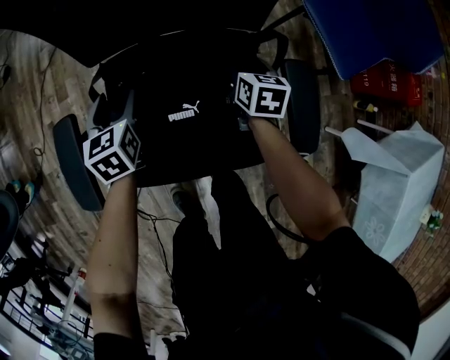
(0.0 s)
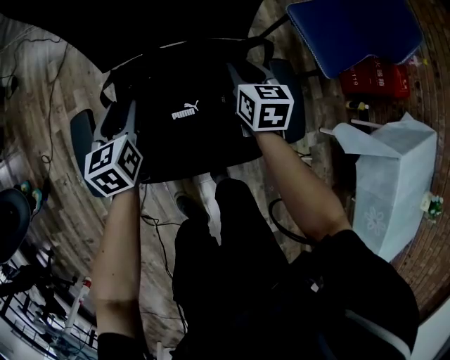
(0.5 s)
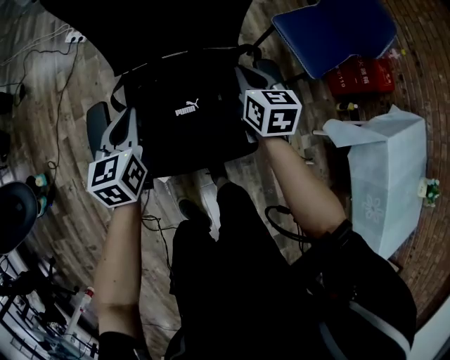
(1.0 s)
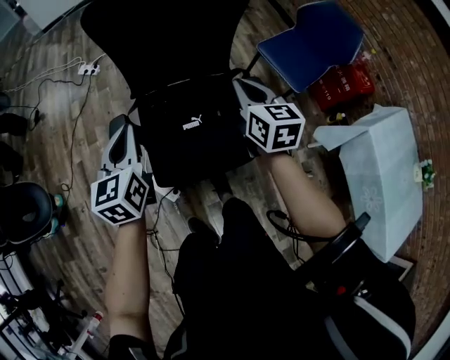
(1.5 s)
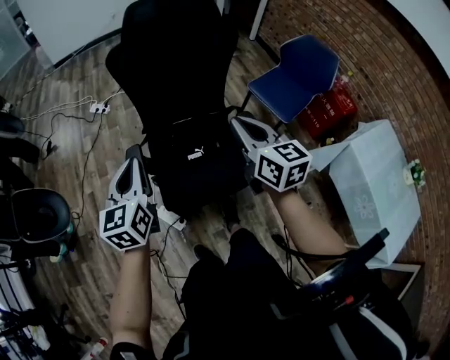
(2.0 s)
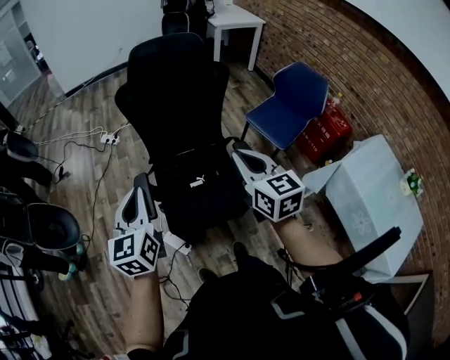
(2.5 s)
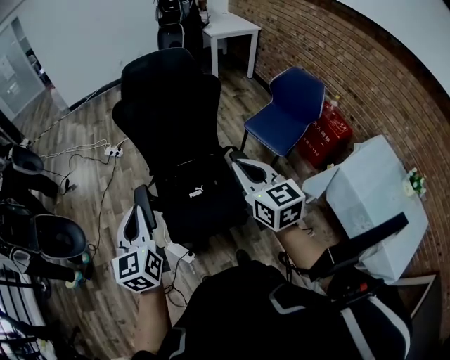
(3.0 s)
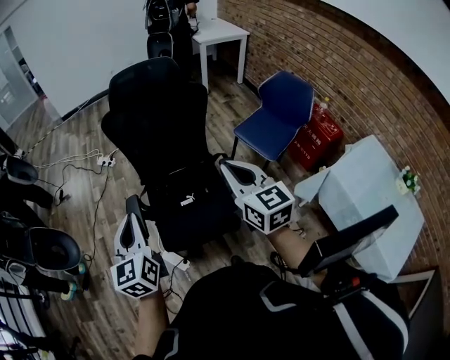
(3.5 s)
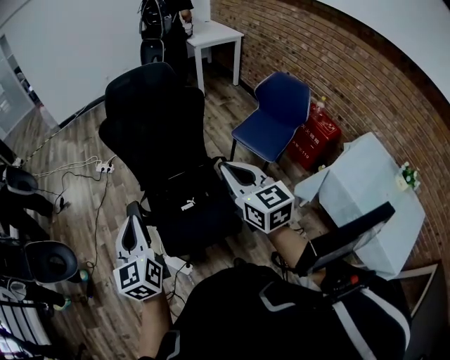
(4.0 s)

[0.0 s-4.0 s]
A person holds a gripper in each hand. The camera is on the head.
0.0 to 2.0 s: Both grippers move upward and backward, approximately 50 cm. The right gripper tilts its fingers roughly 30 degrees upward, and closes; the left gripper rotates some 30 degrees, and closes.
2.0 to 4.0 s: The left gripper goes some 10 cm upward, backward and to the right. Meanwhile the right gripper travels upward and to the right by some 10 cm.

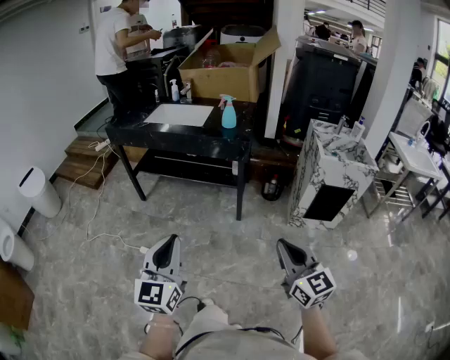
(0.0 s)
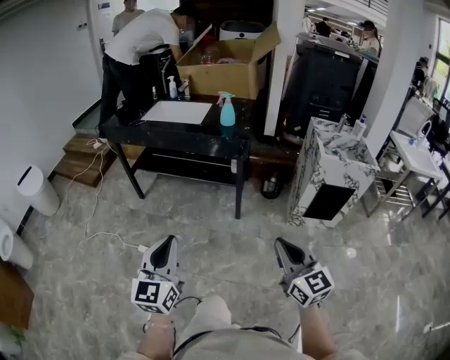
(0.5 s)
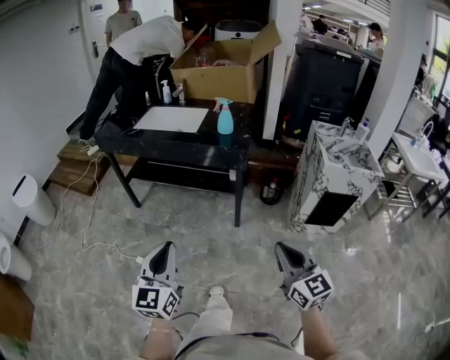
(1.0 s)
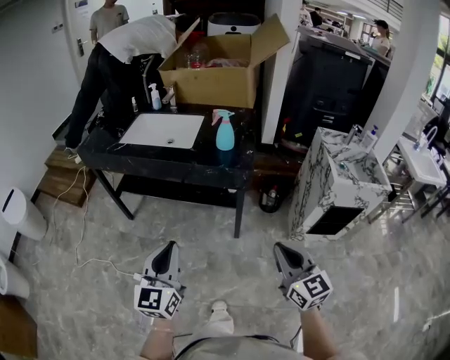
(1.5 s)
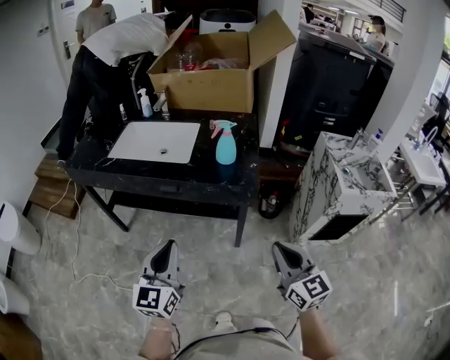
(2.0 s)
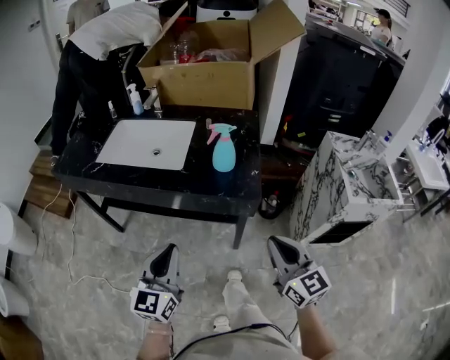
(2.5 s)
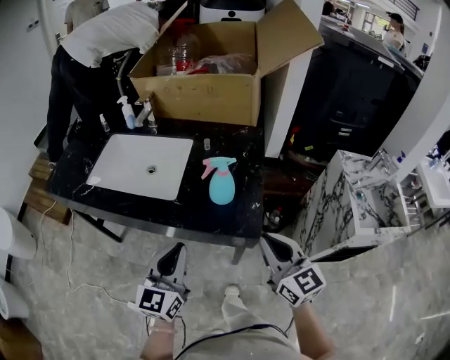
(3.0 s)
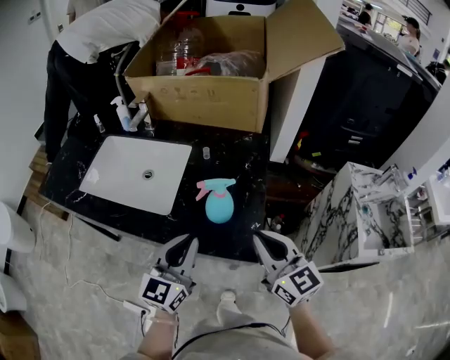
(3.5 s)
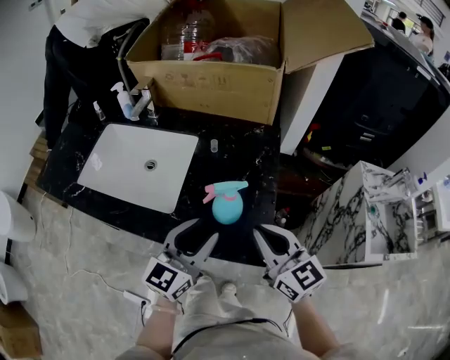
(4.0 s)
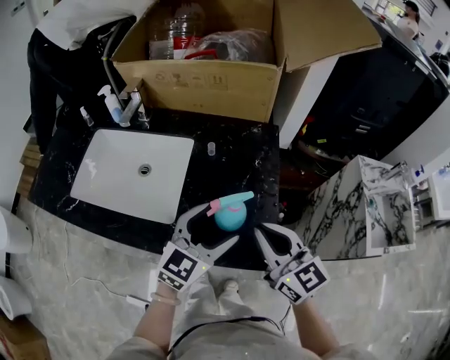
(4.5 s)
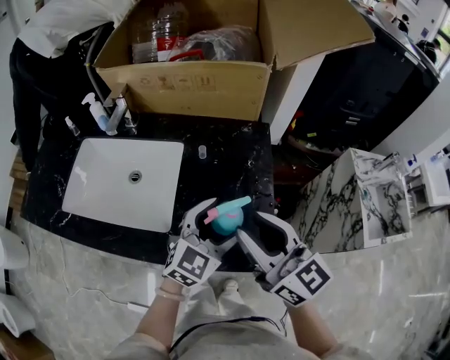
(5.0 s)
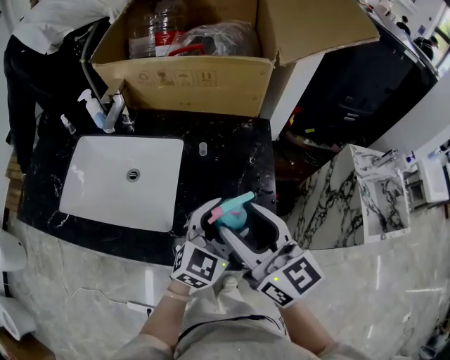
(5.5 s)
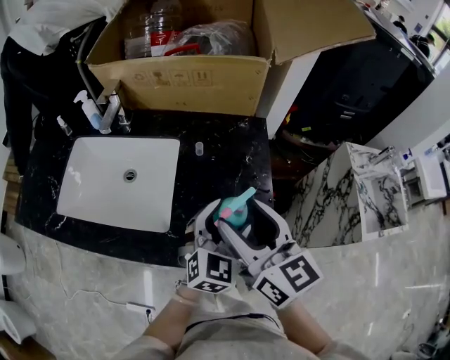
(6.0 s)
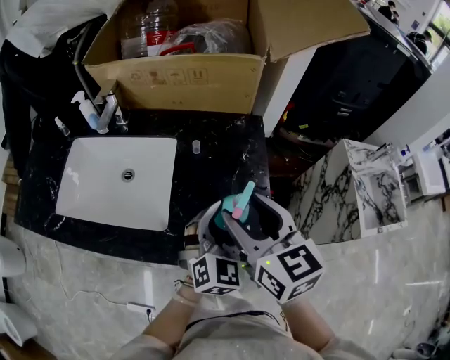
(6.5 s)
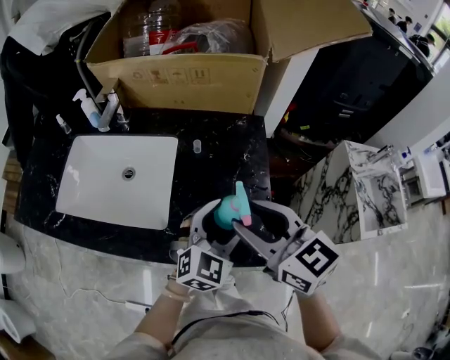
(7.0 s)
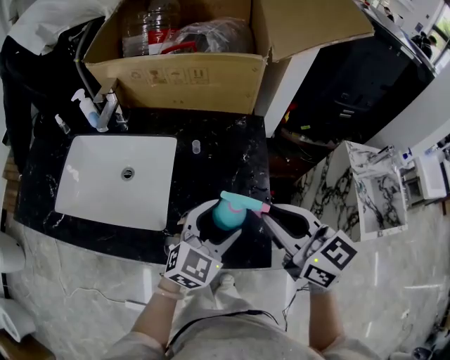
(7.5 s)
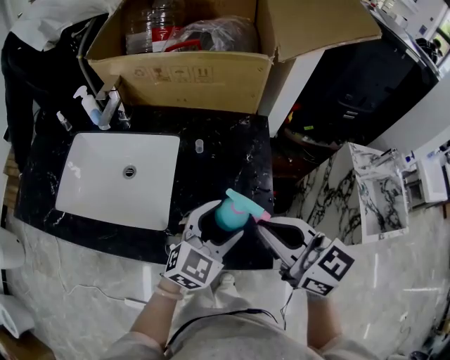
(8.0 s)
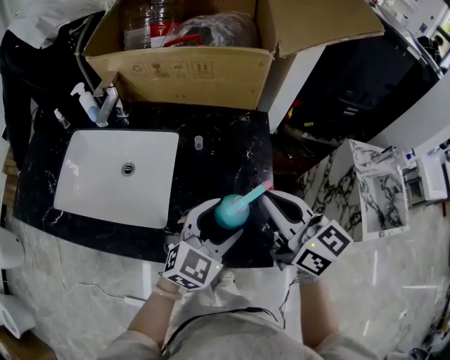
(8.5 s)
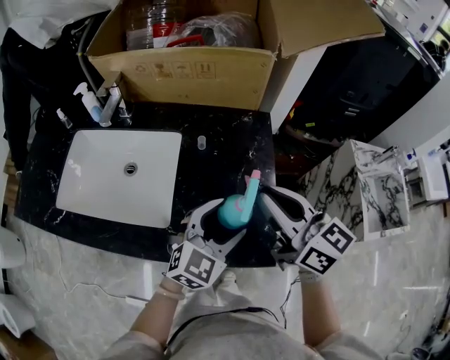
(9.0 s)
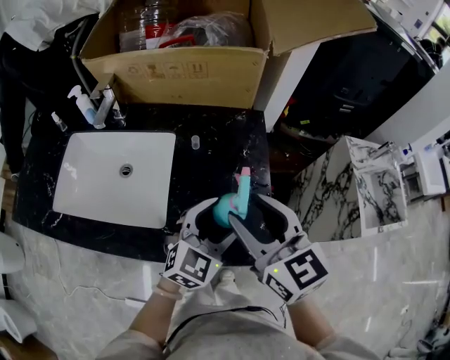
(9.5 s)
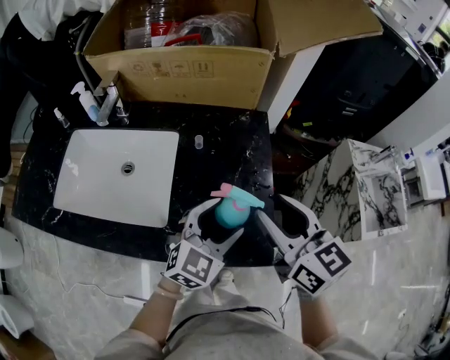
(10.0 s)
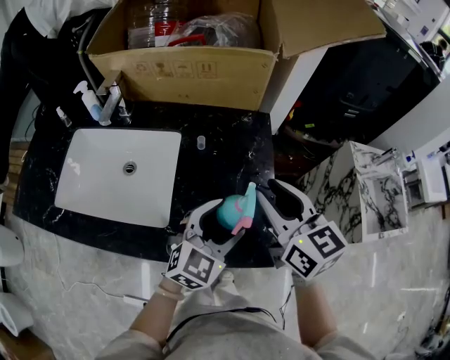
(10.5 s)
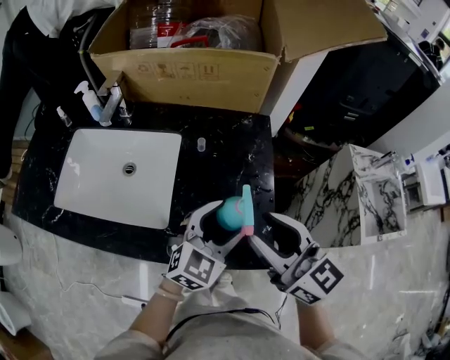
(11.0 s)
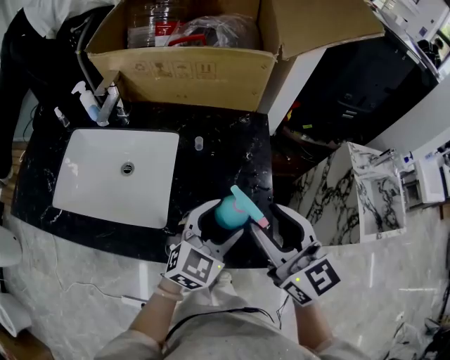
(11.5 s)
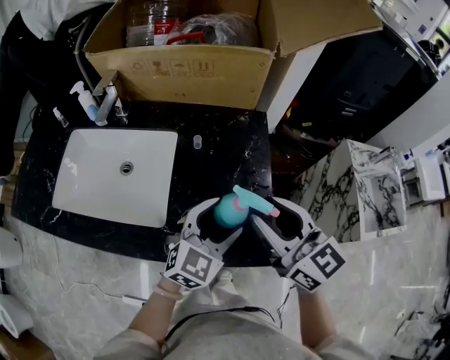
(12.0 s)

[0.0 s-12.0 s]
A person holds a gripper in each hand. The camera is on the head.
0.0 to 2.0 s: Both grippers travel together forward, about 35 cm.
2.0 to 4.0 s: The right gripper moves forward, approximately 35 cm; the left gripper is displaced forward and to the right by some 35 cm, and opens up.
4.0 to 6.0 s: The left gripper moves forward and to the right, approximately 10 cm, rotates roughly 30 degrees, and opens its fingers. The right gripper moves to the left, upward and forward, some 10 cm, and opens its fingers.
6.0 to 8.0 s: The right gripper ends up some 5 cm from where it was, and closes.
8.0 to 10.0 s: The right gripper opens up.
10.0 to 12.0 s: There are only small adjustments of the grippers.

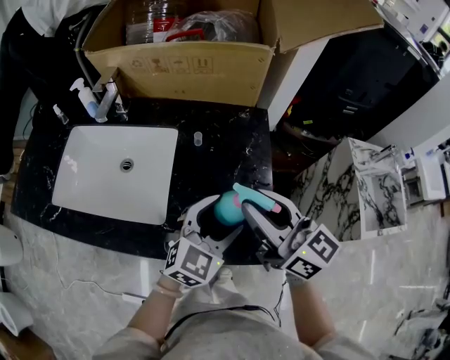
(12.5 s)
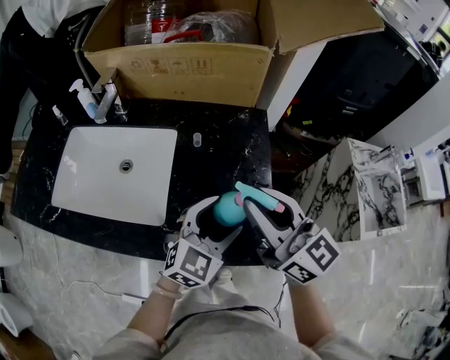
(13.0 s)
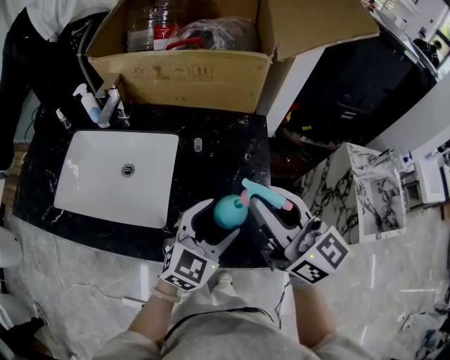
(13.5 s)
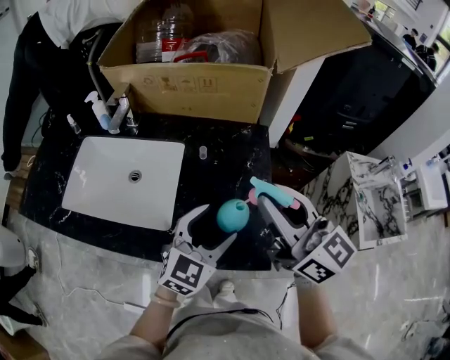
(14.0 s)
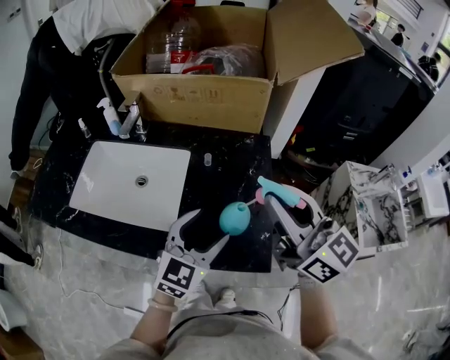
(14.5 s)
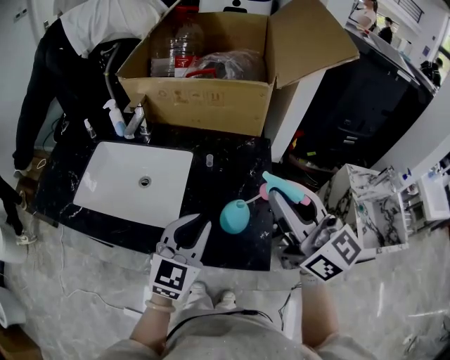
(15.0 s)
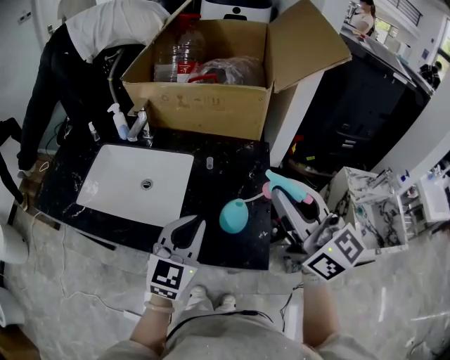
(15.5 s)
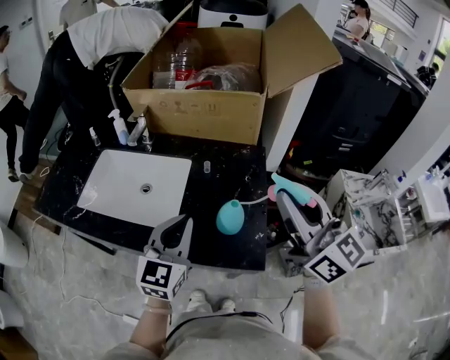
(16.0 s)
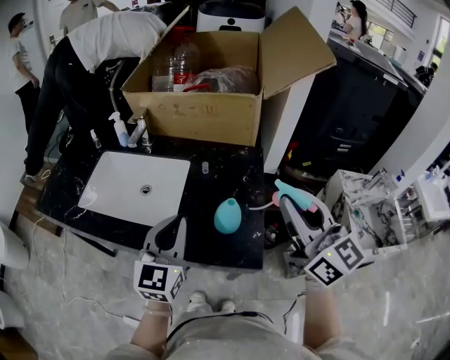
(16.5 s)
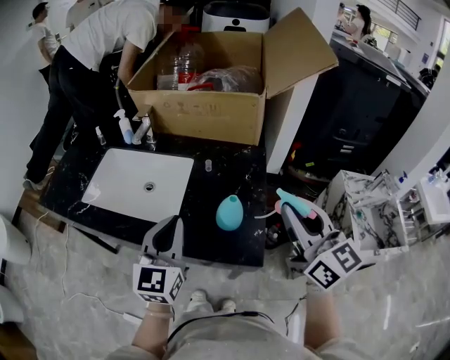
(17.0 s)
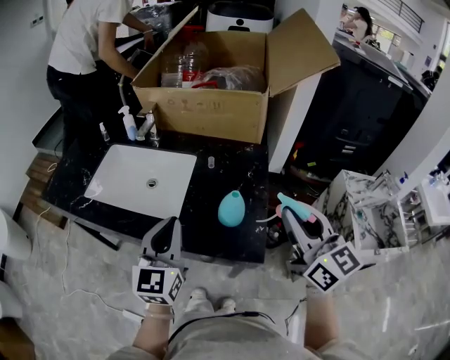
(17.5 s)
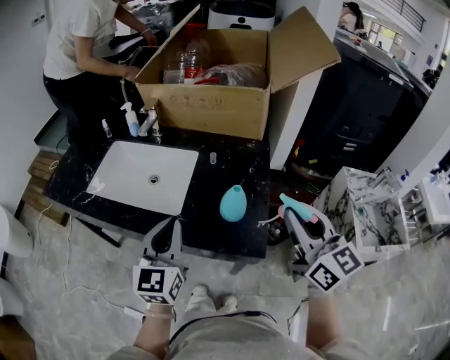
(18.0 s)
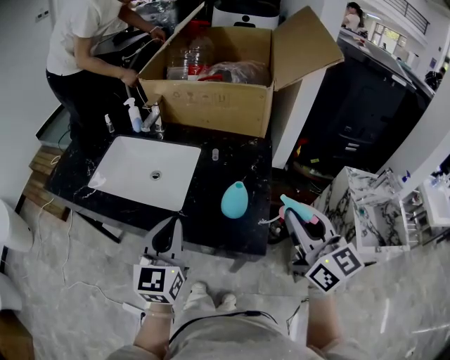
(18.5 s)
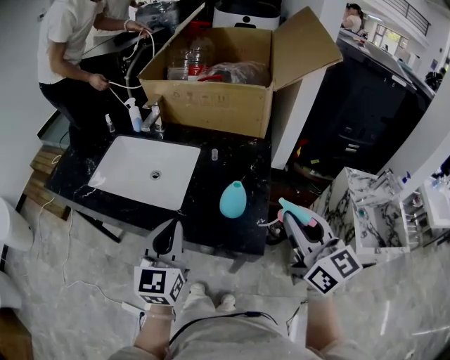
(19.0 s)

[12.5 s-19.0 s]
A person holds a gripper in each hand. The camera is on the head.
12.5 to 14.5 s: The right gripper travels upward by roughly 10 cm, while the left gripper is displaced to the left by roughly 5 cm.
14.5 to 17.0 s: The right gripper is displaced backward and to the right by some 10 cm; the left gripper travels to the left and upward by roughly 10 cm, swivels roughly 30 degrees, and closes.
17.0 to 19.0 s: The left gripper shifts by roughly 5 cm. The right gripper moves about 5 cm.

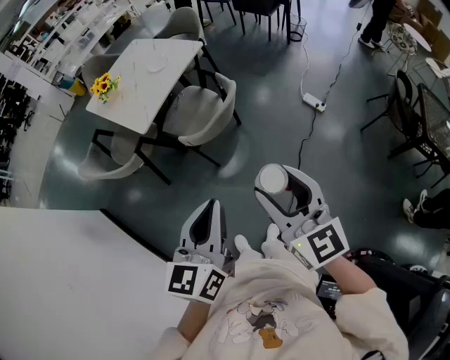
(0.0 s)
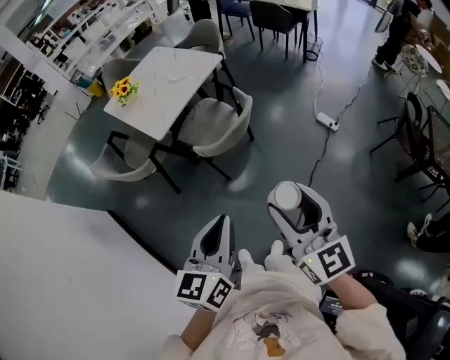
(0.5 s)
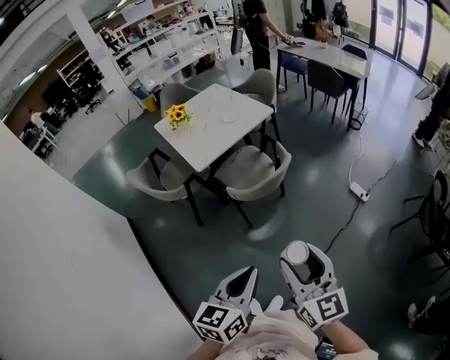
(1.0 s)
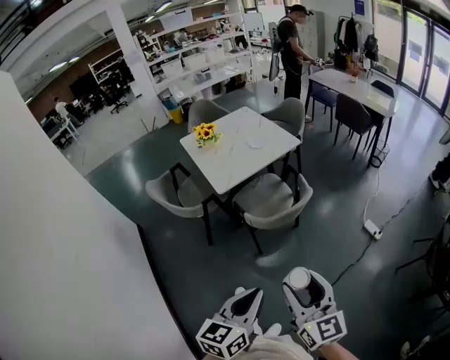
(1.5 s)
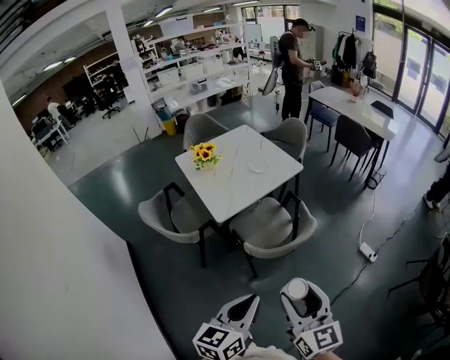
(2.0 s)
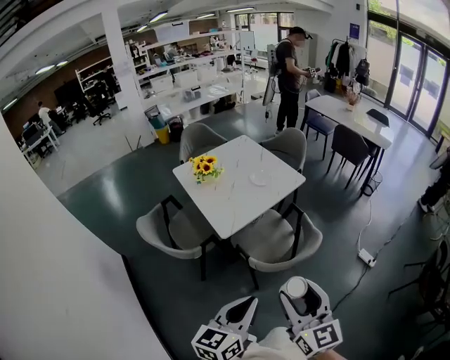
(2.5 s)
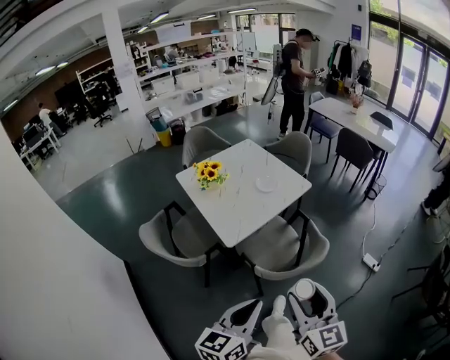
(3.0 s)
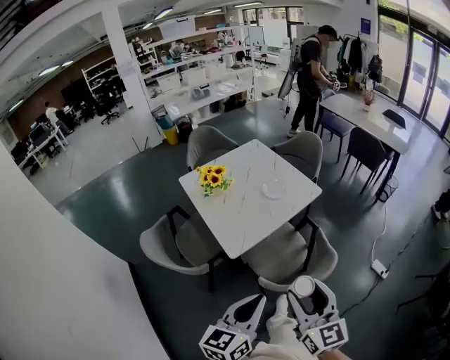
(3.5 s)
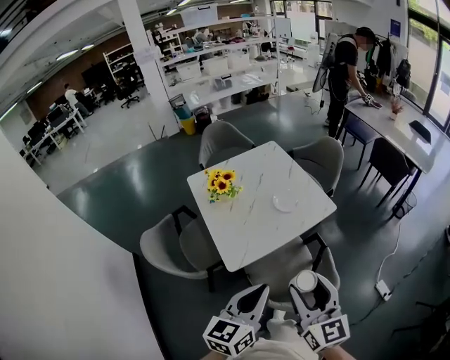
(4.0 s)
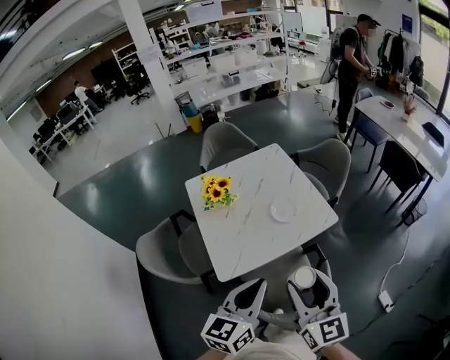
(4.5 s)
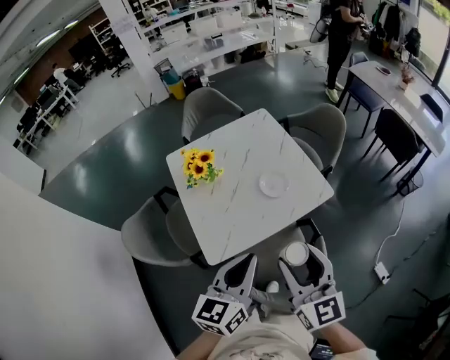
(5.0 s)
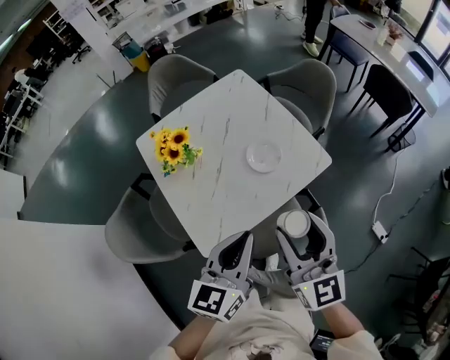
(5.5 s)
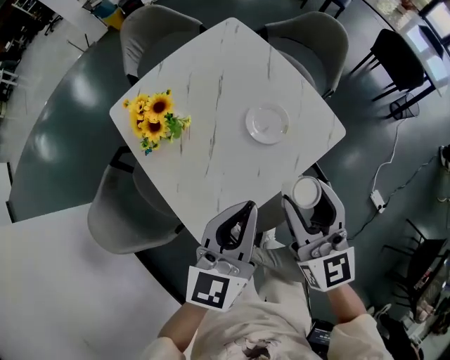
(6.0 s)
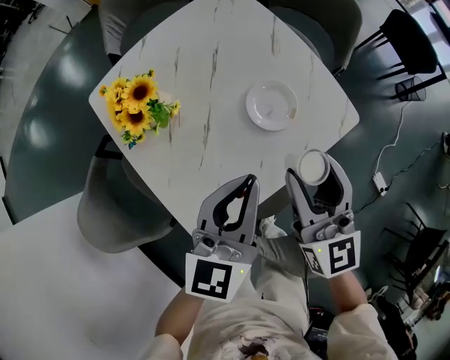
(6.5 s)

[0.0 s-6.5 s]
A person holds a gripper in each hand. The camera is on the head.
0.0 to 2.0 s: The two grippers go some 15 cm forward and to the left.
2.0 to 4.5 s: Both grippers are carried forward, about 40 cm.
4.5 to 6.5 s: The two grippers go roughly 35 cm forward and downward.
